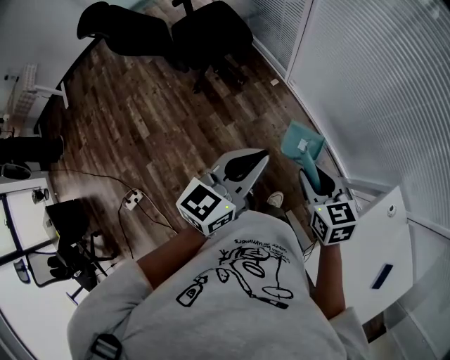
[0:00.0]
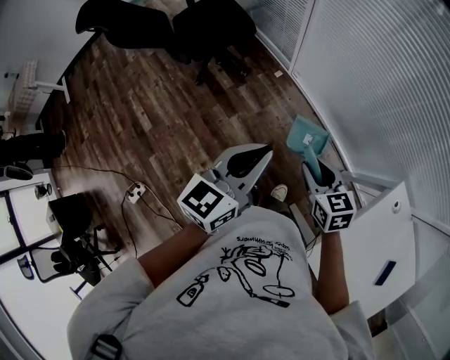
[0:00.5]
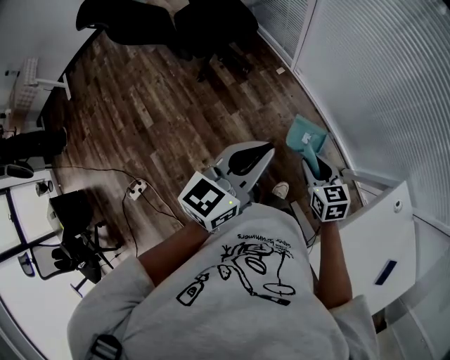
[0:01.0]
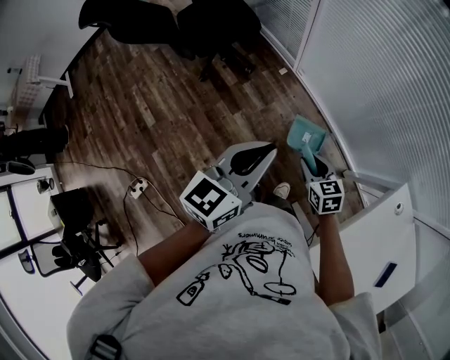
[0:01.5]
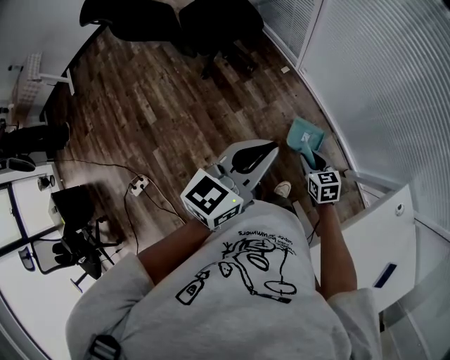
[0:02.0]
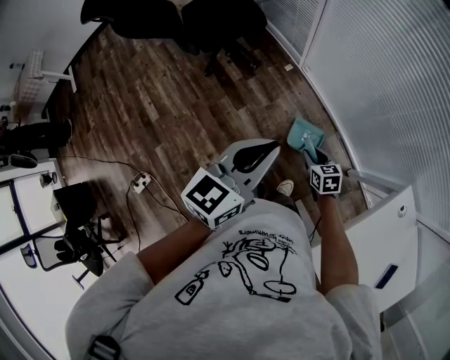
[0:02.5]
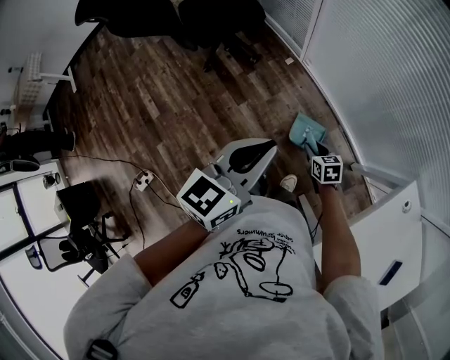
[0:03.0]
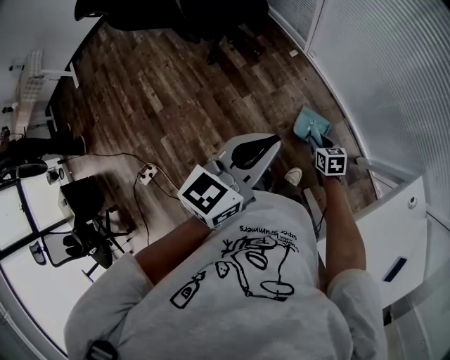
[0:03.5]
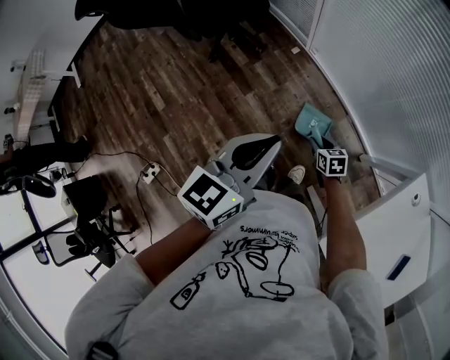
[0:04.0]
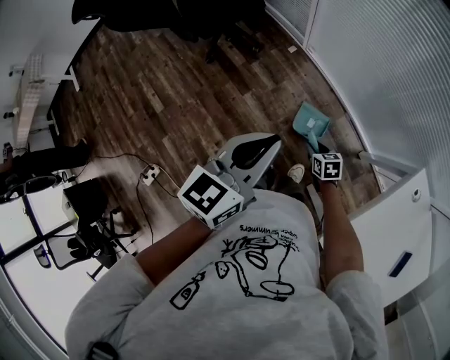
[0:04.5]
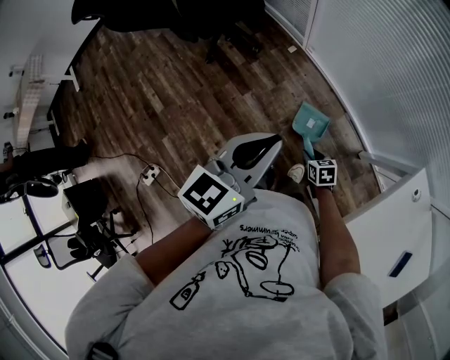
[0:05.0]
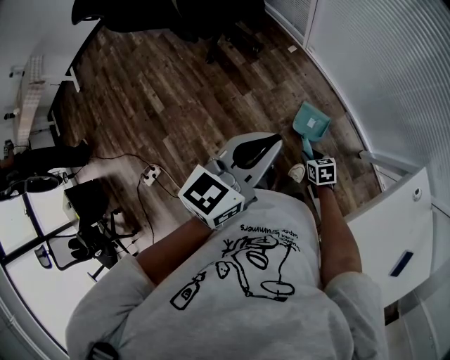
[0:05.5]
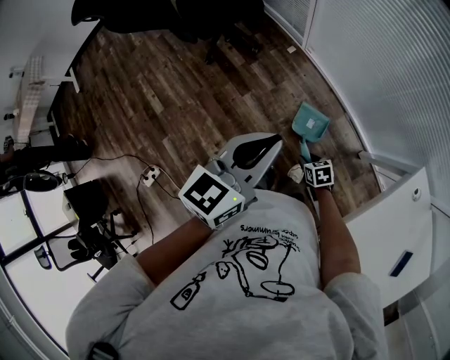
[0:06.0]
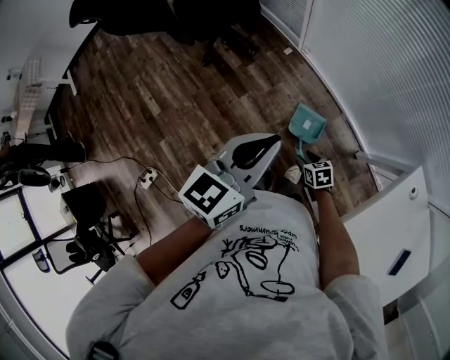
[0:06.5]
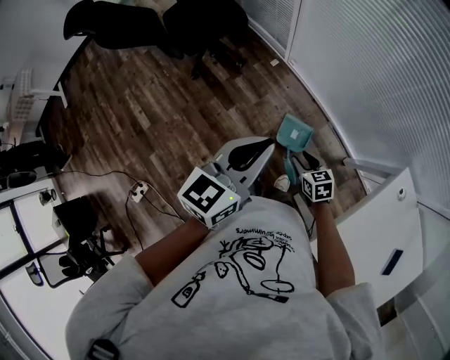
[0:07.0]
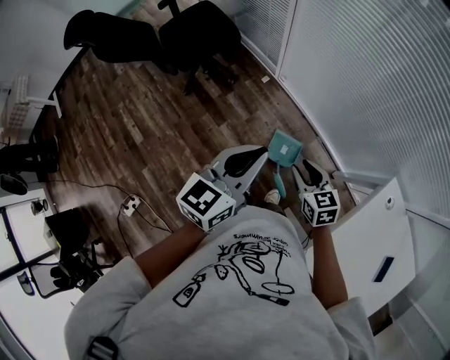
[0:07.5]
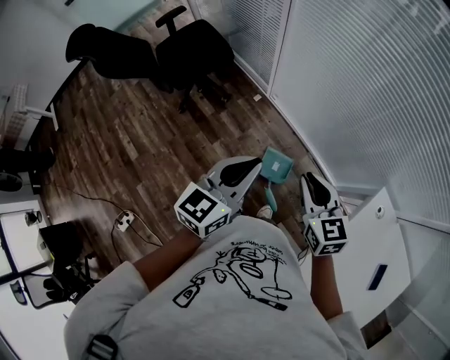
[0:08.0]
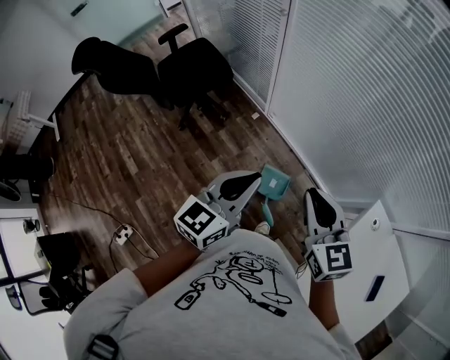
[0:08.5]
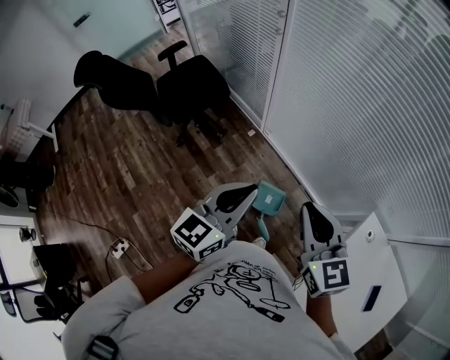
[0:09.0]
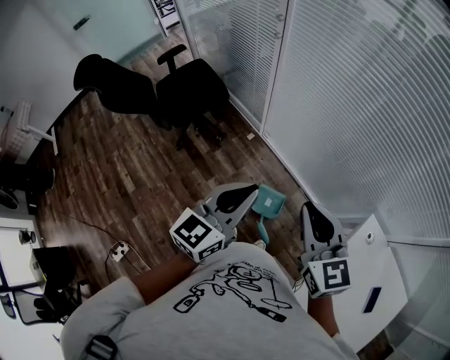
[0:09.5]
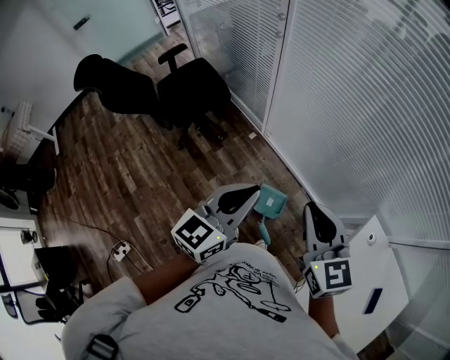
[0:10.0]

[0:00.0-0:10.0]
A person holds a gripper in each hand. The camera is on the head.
0:00.0 to 0:02.0: The right gripper shifts roughly 20 cm downward.
0:02.0 to 0:04.0: The right gripper is displaced downward by about 10 cm.
0:04.0 to 0:06.0: The right gripper goes some 10 cm backward.
0:06.0 to 0:08.0: The left gripper moves approximately 5 cm, while the right gripper moves upward, roughly 40 cm, and angles its fingers upward, by approximately 30 degrees.
0:08.0 to 0:10.0: The right gripper heads upward, covering about 15 cm. The left gripper is displaced upward by some 5 cm.

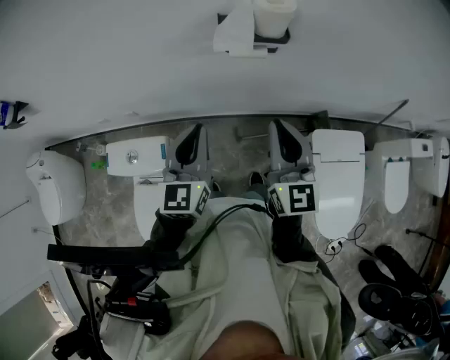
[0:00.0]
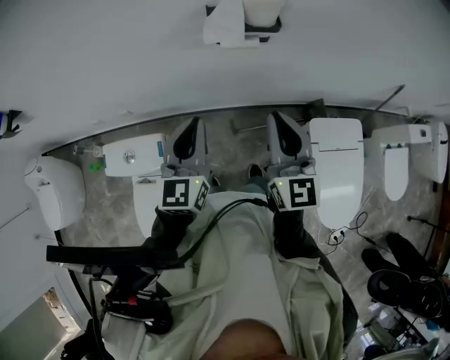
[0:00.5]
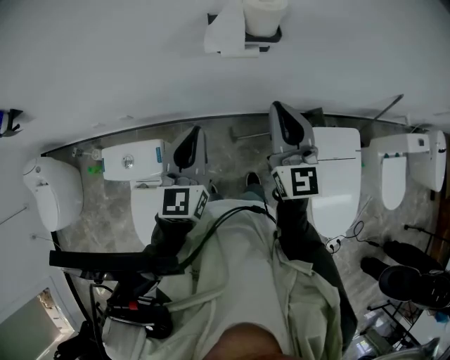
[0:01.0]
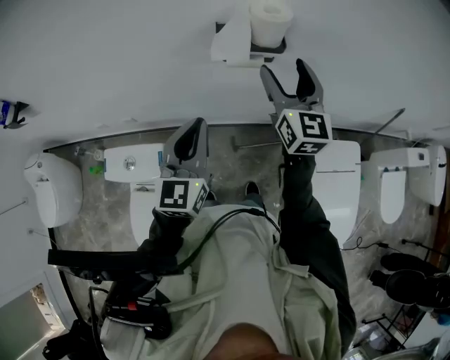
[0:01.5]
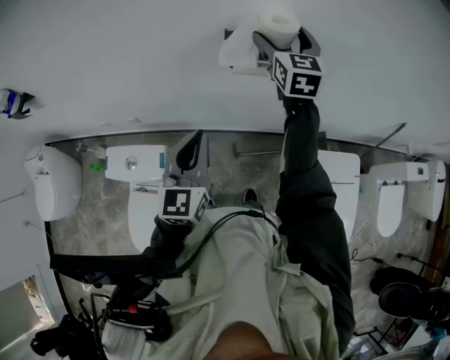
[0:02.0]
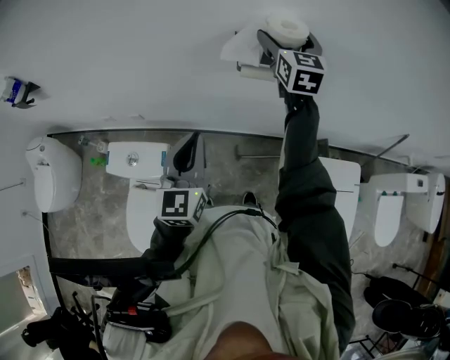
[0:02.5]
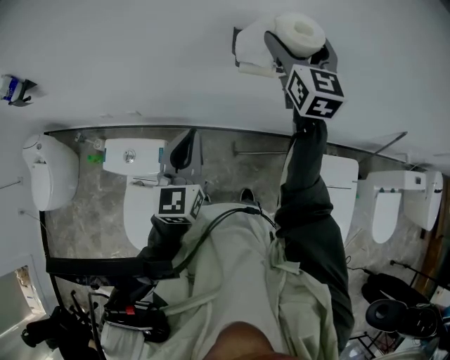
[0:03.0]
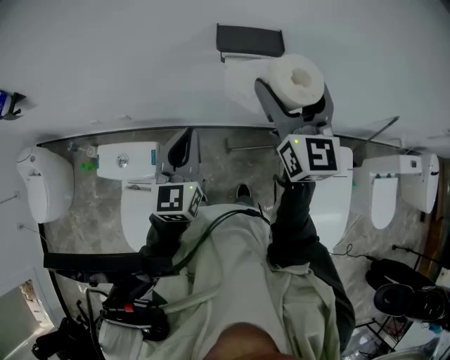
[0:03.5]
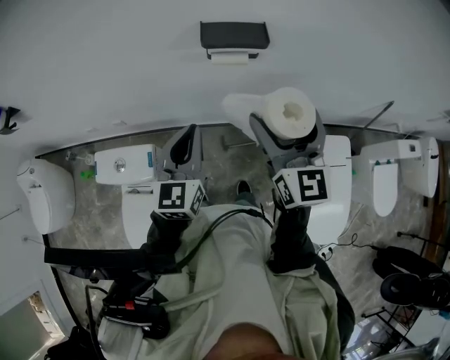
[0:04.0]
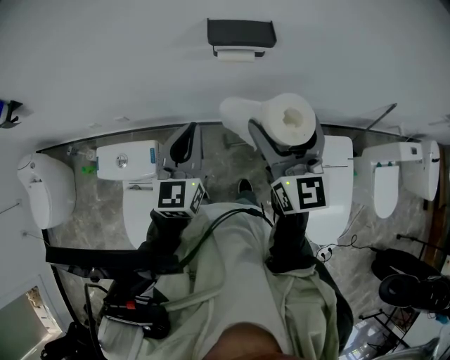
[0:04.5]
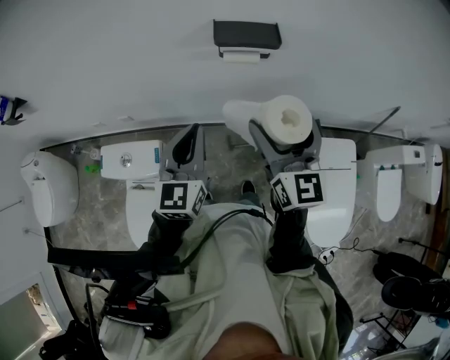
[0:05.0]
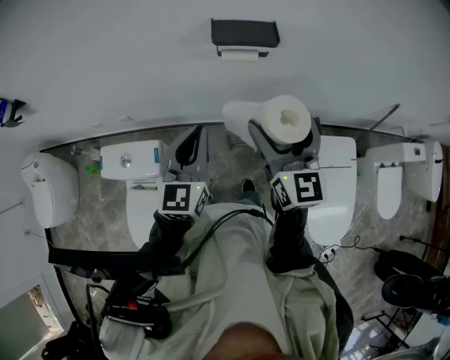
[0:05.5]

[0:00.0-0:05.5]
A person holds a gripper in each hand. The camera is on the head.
0:00.0 to 0:02.0: The right gripper goes approximately 25 cm forward, and opens.
0:02.0 to 0:03.5: The right gripper goes some 20 cm backward.
0:03.5 to 0:05.5: The right gripper travels backward and downward by roughly 10 cm.

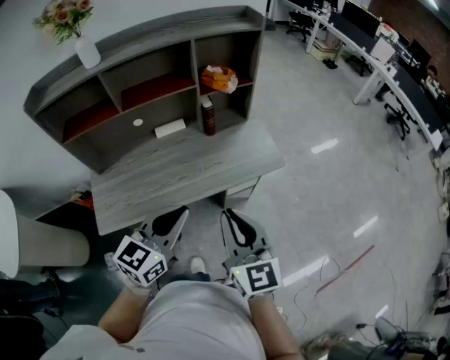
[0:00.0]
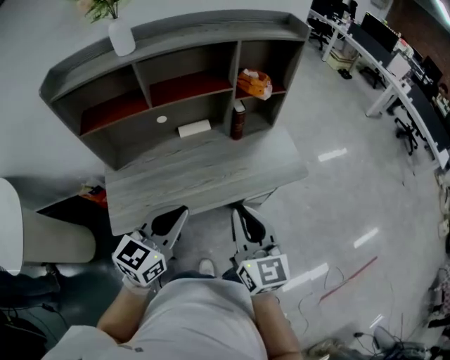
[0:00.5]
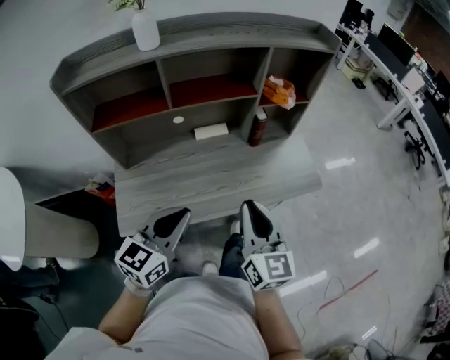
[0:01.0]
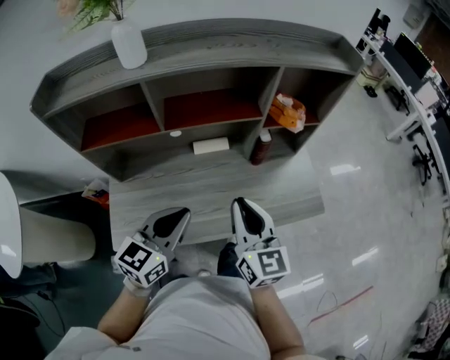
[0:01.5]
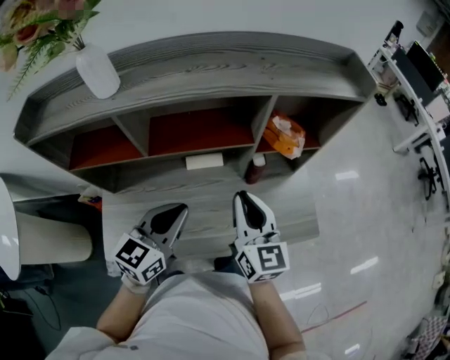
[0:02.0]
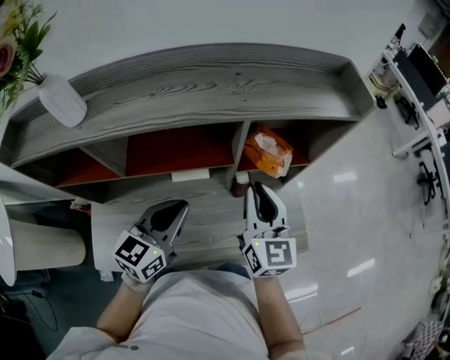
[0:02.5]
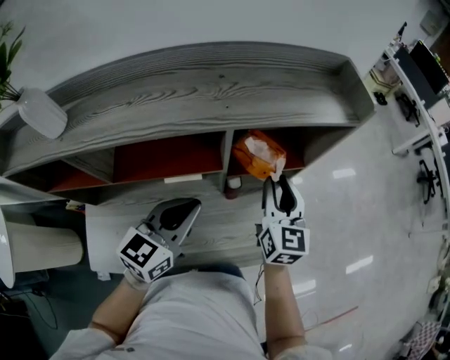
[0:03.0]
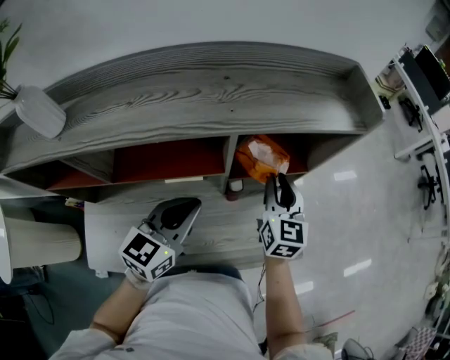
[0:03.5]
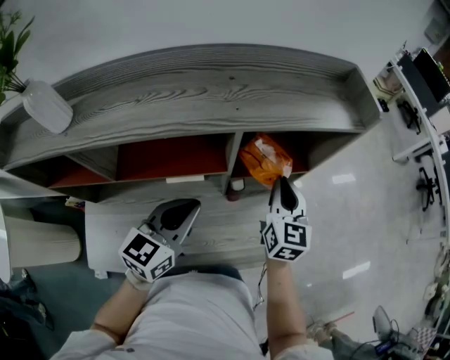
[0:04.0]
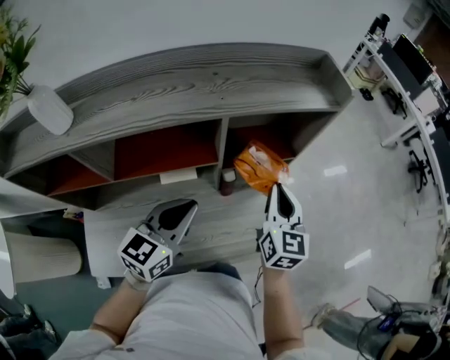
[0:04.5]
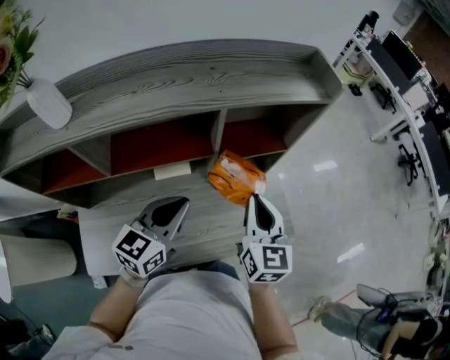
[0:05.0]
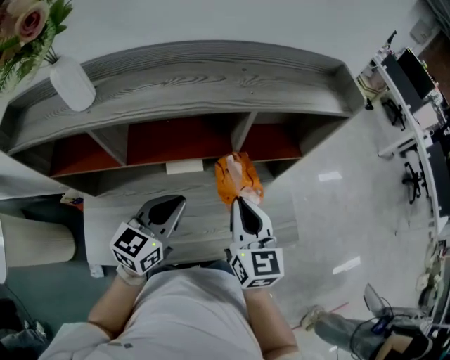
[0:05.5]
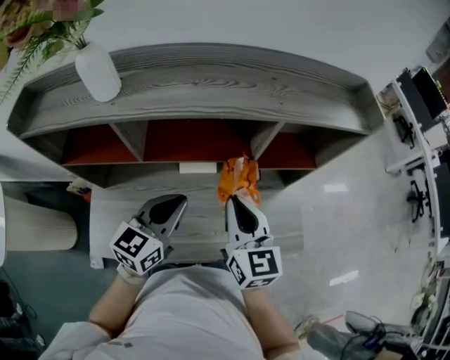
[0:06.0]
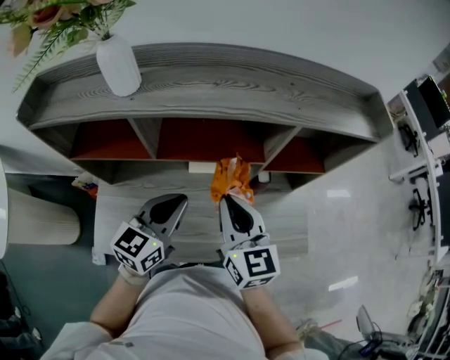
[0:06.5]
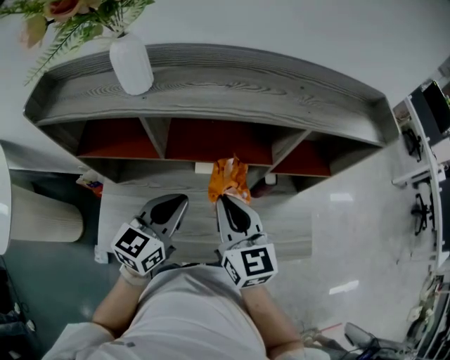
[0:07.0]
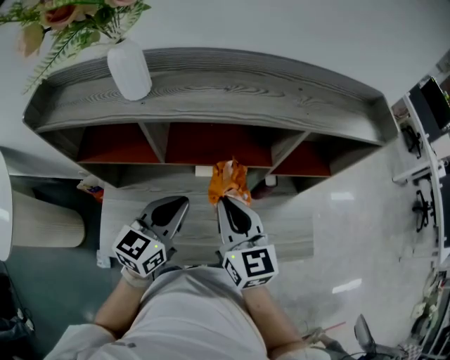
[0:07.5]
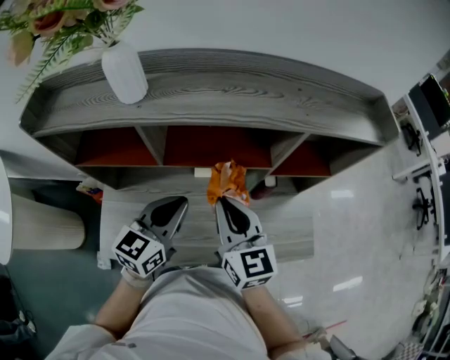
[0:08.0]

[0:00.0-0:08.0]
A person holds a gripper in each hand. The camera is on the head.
0:00.0 to 0:02.0: The right gripper moves forward, roughly 35 cm, while the left gripper shifts approximately 30 cm forward and to the left.
0:02.0 to 0:04.0: The left gripper goes approximately 15 cm forward and to the right; the right gripper heads forward and to the right, covering some 25 cm.
0:04.0 to 0:06.0: The right gripper shifts some 25 cm backward and to the left, and turns by some 20 degrees, while the left gripper heads to the left and backward, covering approximately 10 cm.
0:06.0 to 0:08.0: The left gripper is displaced to the left by approximately 5 cm. Meanwhile the right gripper shifts roughly 10 cm to the left.

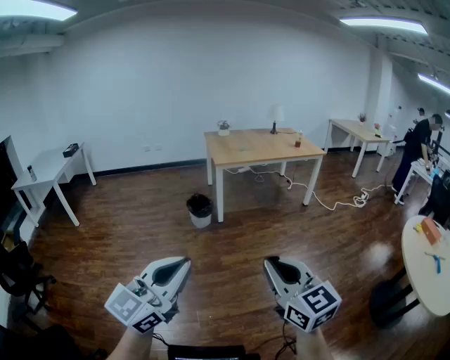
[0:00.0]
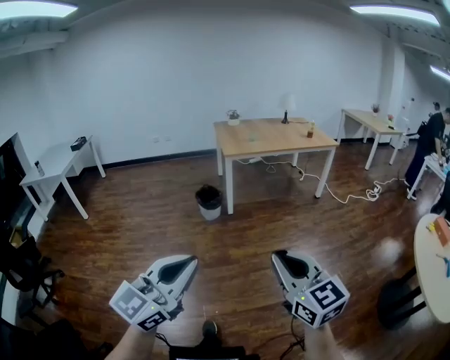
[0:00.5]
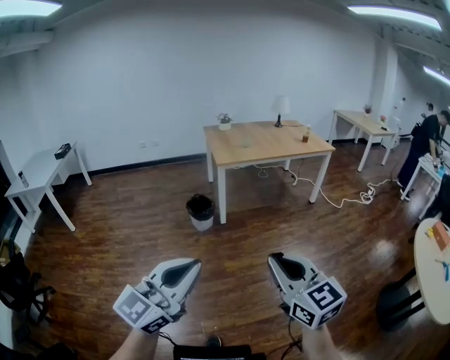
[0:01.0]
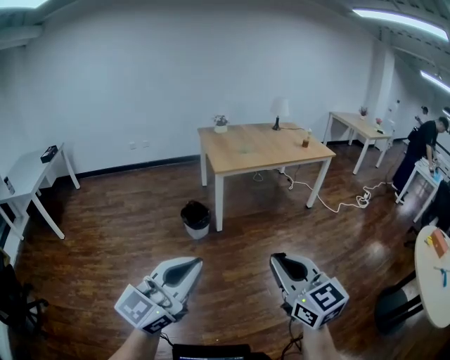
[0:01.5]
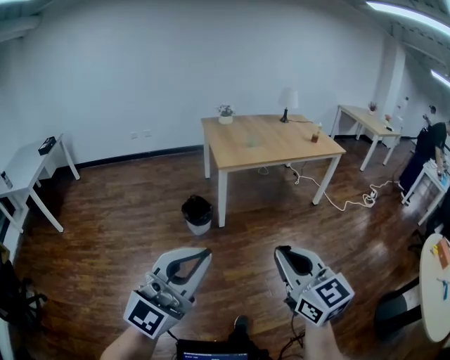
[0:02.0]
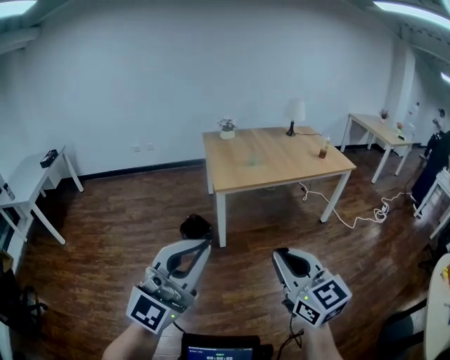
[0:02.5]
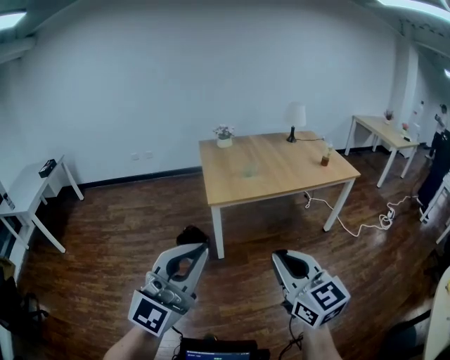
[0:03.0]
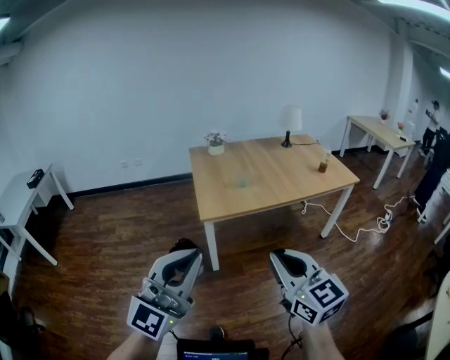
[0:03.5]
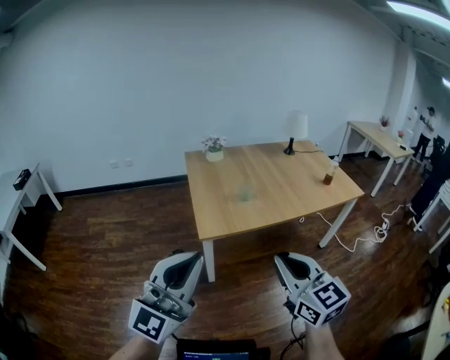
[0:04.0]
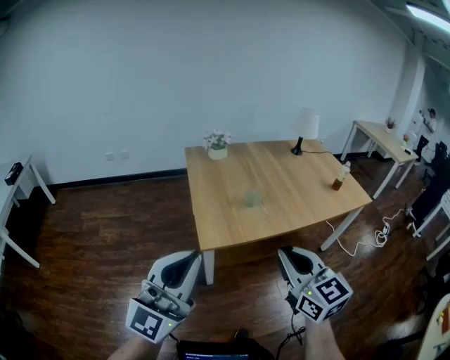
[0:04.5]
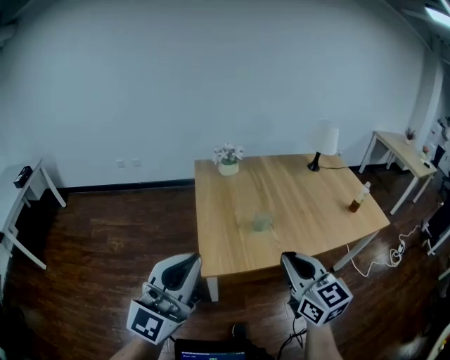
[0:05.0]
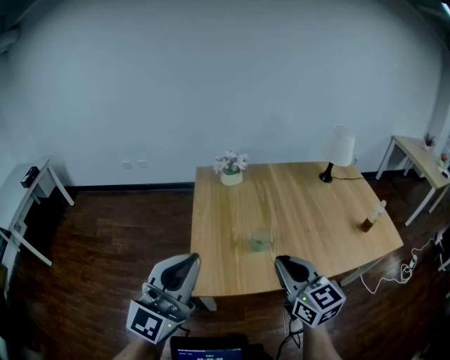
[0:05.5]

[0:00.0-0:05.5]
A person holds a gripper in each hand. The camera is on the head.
0:00.0 to 0:02.0: The grippers both shift forward by approximately 35 cm. The left gripper turns by about 30 degrees.
0:02.0 to 0:03.5: The two grippers go roughly 35 cm forward.
0:03.5 to 0:05.5: The two grippers travel together, forward, some 50 cm.
